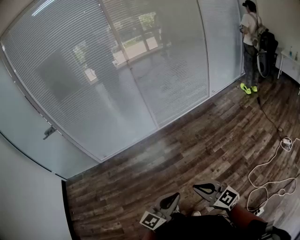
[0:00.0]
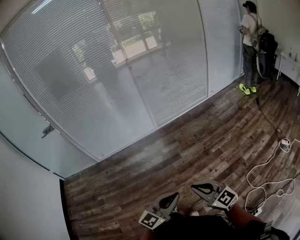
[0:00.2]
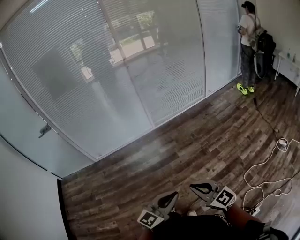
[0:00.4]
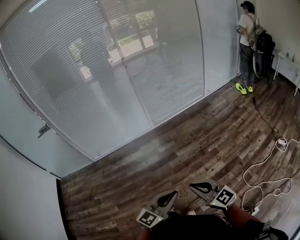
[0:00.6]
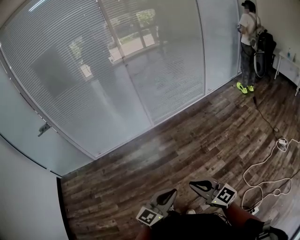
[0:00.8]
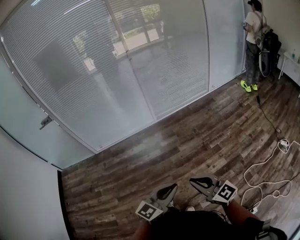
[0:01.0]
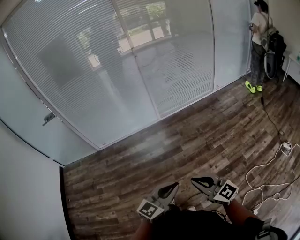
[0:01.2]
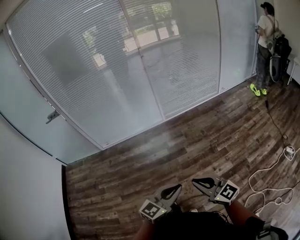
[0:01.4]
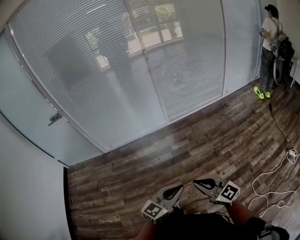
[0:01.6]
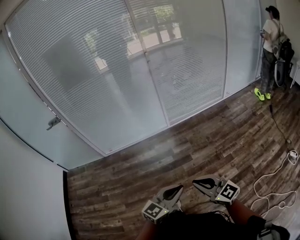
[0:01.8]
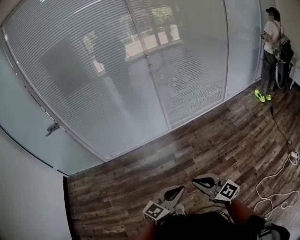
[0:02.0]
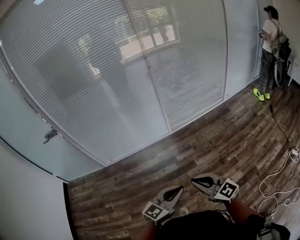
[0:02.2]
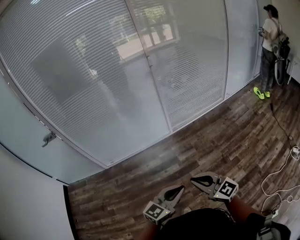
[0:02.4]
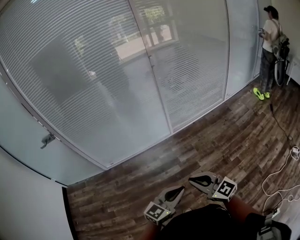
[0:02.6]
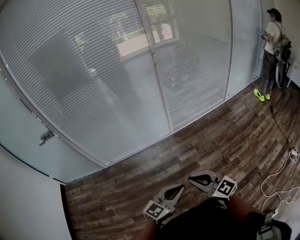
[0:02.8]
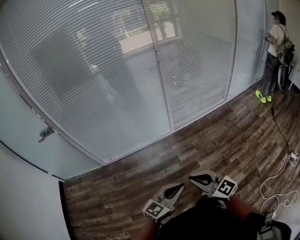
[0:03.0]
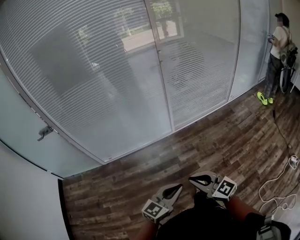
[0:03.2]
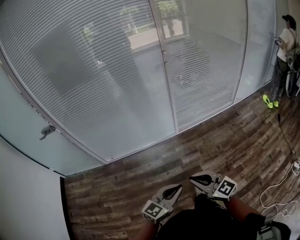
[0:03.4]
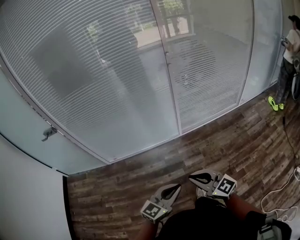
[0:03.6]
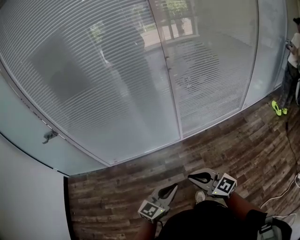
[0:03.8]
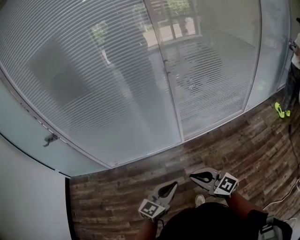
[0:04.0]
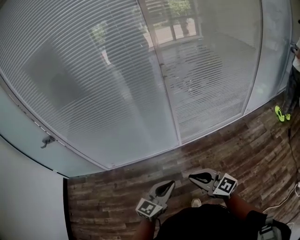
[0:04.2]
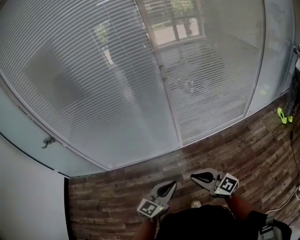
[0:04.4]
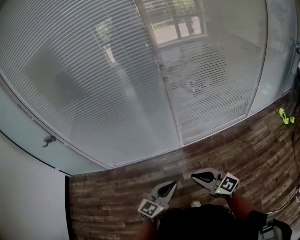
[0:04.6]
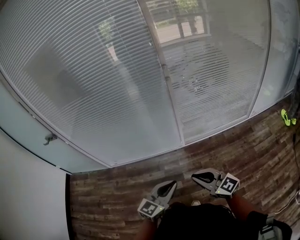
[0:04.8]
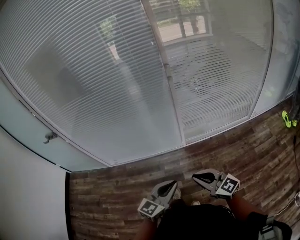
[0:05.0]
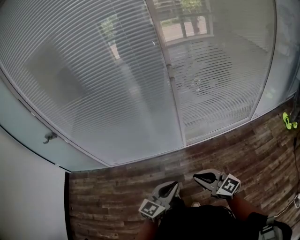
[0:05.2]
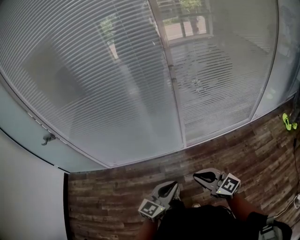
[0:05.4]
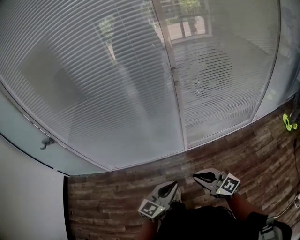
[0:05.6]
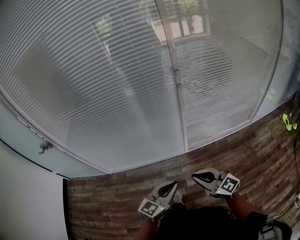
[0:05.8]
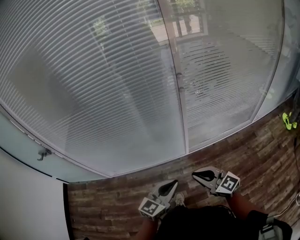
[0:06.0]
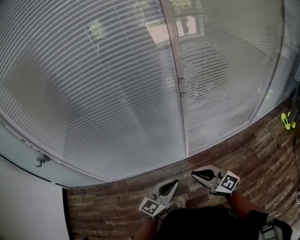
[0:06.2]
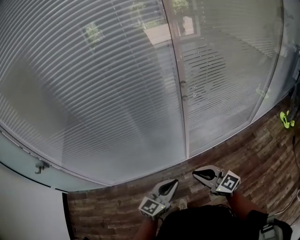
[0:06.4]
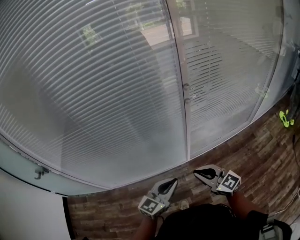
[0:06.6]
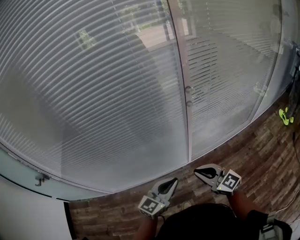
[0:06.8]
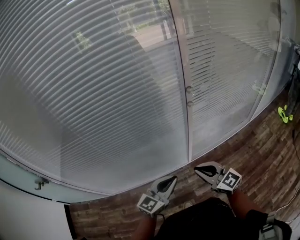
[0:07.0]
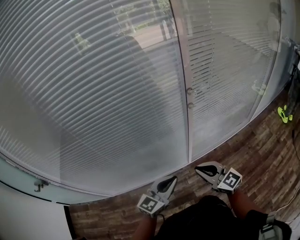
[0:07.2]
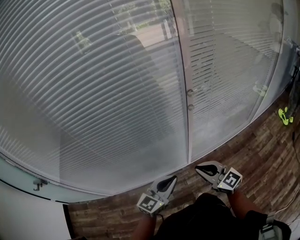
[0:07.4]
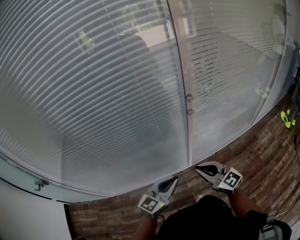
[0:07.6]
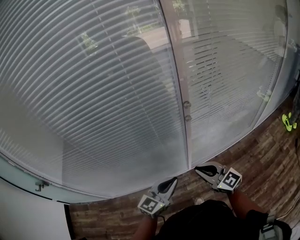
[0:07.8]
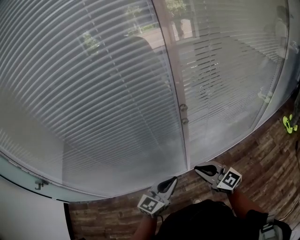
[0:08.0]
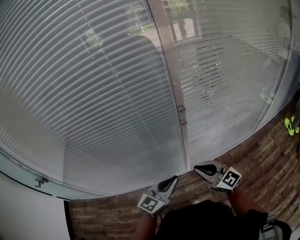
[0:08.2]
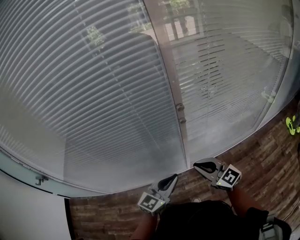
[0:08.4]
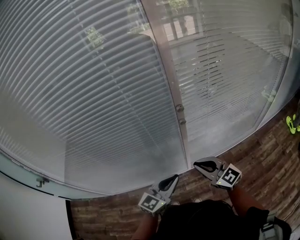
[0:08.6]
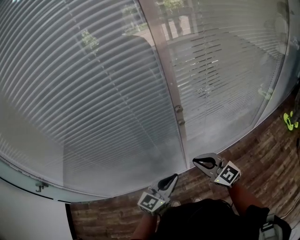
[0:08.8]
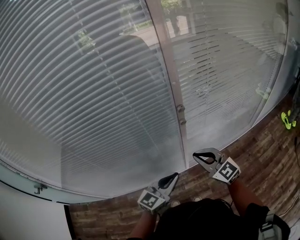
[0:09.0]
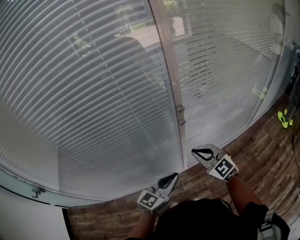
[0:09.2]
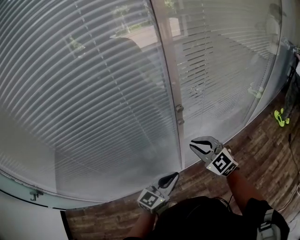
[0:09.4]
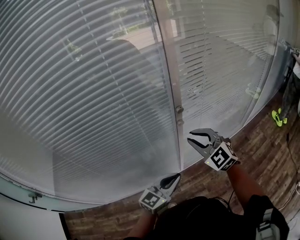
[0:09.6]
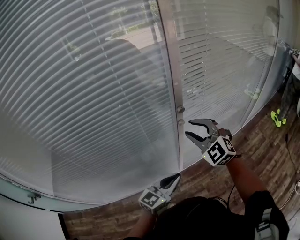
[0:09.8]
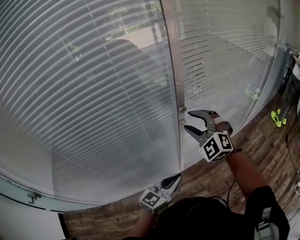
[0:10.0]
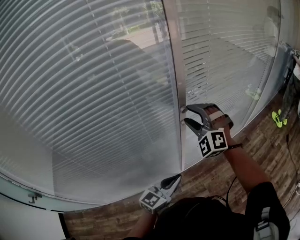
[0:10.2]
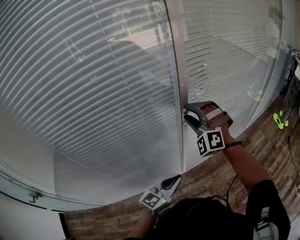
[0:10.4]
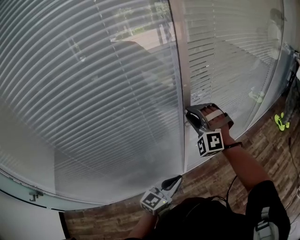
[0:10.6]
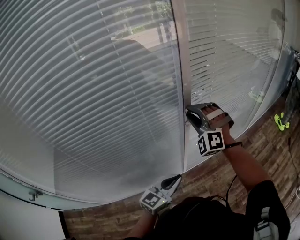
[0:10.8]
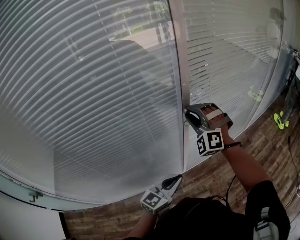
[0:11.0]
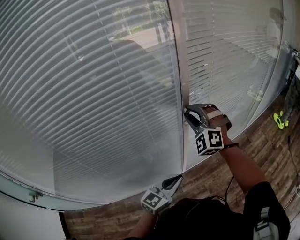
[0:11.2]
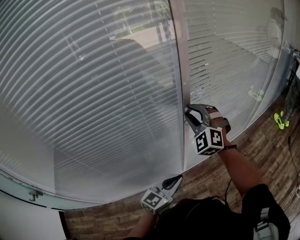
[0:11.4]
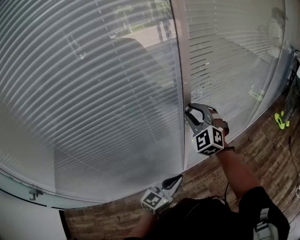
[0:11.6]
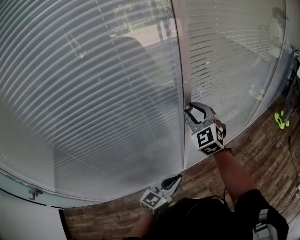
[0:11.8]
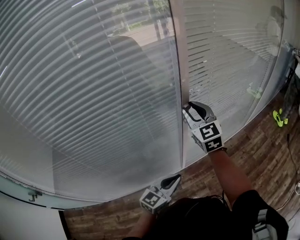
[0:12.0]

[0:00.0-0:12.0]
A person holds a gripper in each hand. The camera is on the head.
0:00.0 to 0:01.6: The right gripper shifts approximately 10 cm forward and to the left; the left gripper heads forward, covering roughly 5 cm.
0:01.6 to 0:03.0: The two grippers go roughly 25 cm forward and to the left.
0:03.0 to 0:04.4: The two grippers go roughly 25 cm forward and to the right.
0:04.4 to 0:06.0: The grippers both shift forward by approximately 15 cm.
0:06.0 to 0:07.6: Both grippers travel together forward, about 15 cm.
0:07.6 to 0:09.0: The left gripper shifts roughly 5 cm to the right, while the right gripper heads forward and to the right, covering some 10 cm.
0:09.0 to 0:10.4: The right gripper goes roughly 20 cm forward and upward, rotates around the line of its fingers by roughly 60 degrees, counterclockwise from behind, and opens.
0:10.4 to 0:12.0: The right gripper rolls clockwise, seen from behind, by roughly 60 degrees.

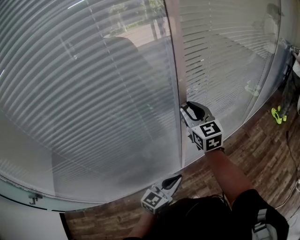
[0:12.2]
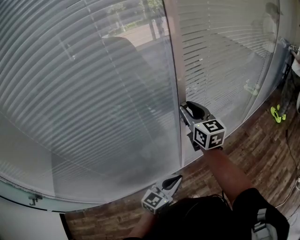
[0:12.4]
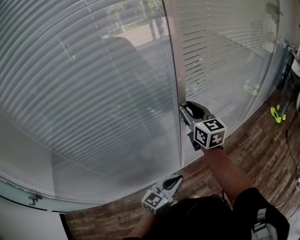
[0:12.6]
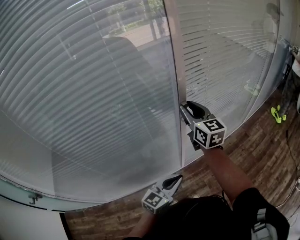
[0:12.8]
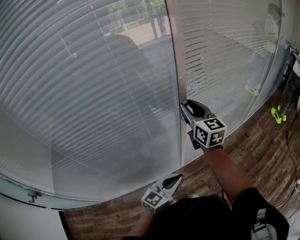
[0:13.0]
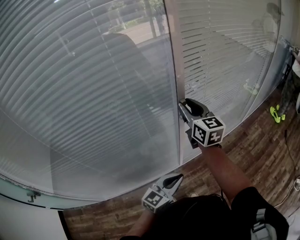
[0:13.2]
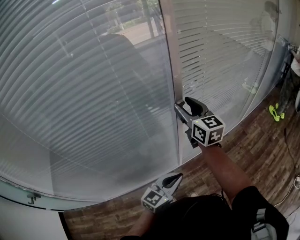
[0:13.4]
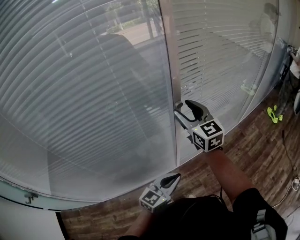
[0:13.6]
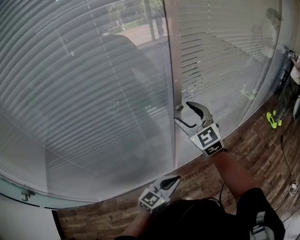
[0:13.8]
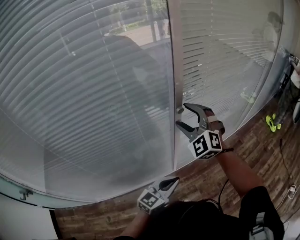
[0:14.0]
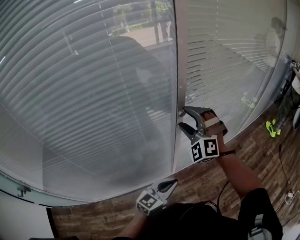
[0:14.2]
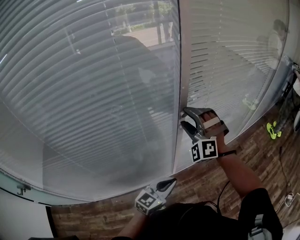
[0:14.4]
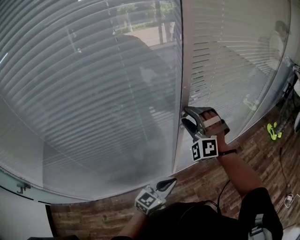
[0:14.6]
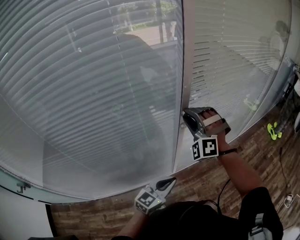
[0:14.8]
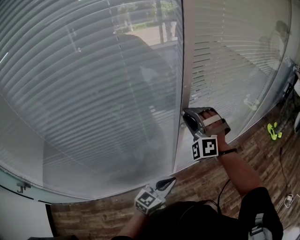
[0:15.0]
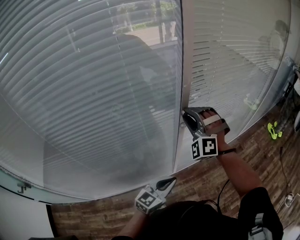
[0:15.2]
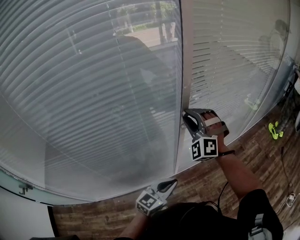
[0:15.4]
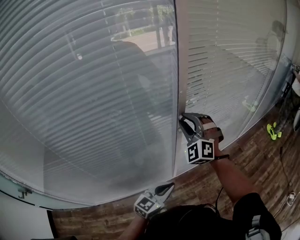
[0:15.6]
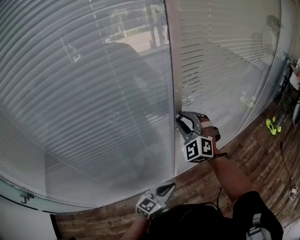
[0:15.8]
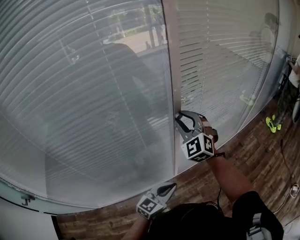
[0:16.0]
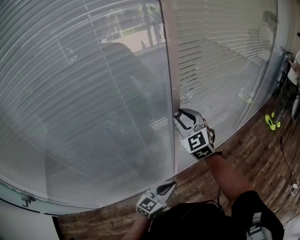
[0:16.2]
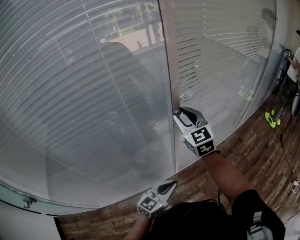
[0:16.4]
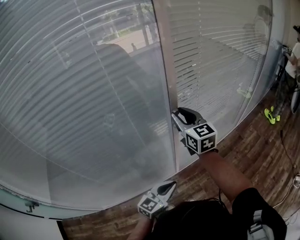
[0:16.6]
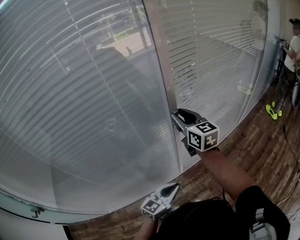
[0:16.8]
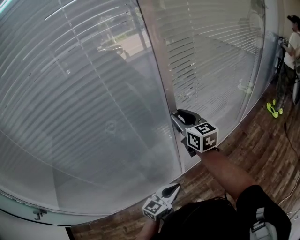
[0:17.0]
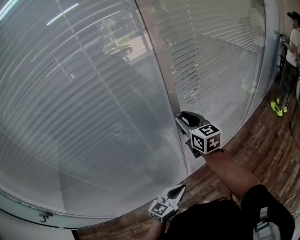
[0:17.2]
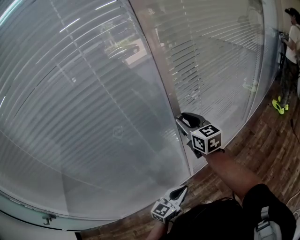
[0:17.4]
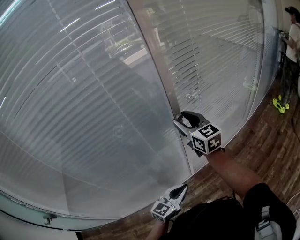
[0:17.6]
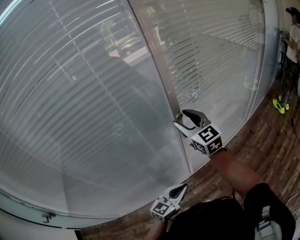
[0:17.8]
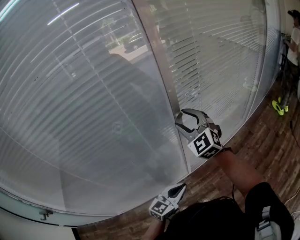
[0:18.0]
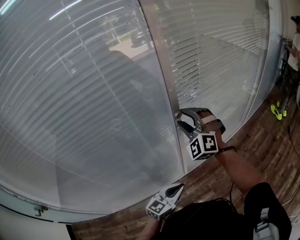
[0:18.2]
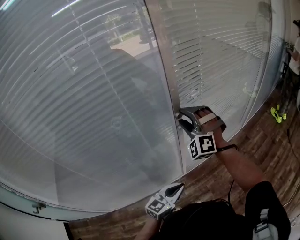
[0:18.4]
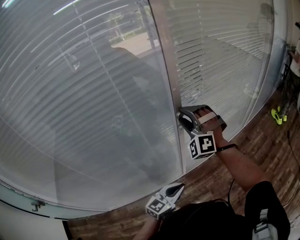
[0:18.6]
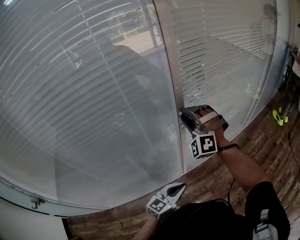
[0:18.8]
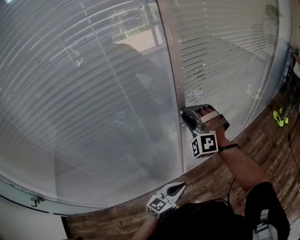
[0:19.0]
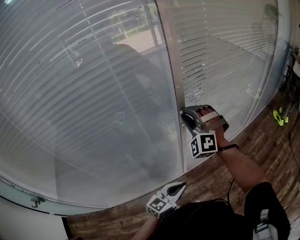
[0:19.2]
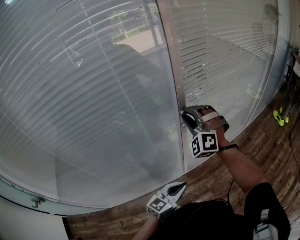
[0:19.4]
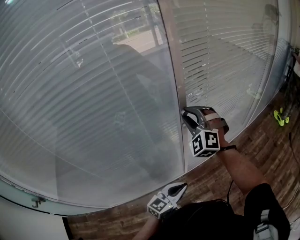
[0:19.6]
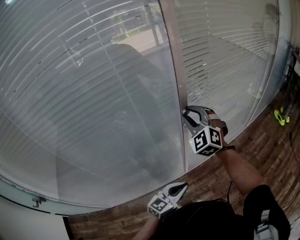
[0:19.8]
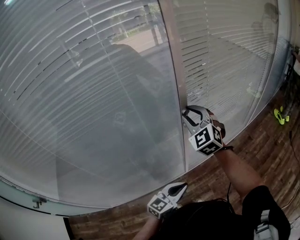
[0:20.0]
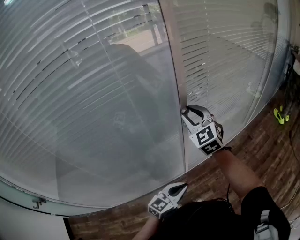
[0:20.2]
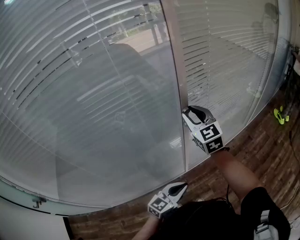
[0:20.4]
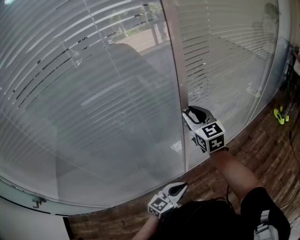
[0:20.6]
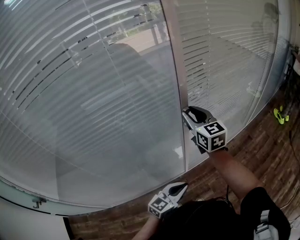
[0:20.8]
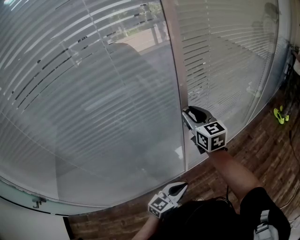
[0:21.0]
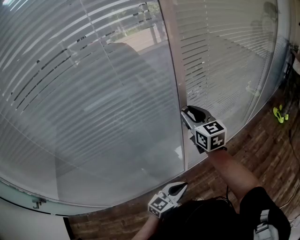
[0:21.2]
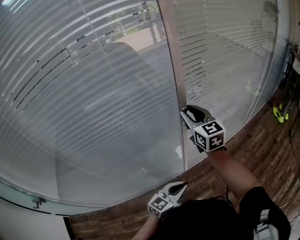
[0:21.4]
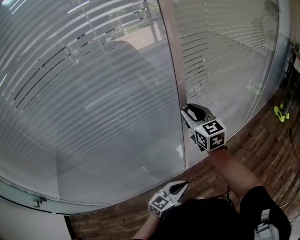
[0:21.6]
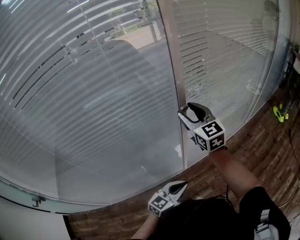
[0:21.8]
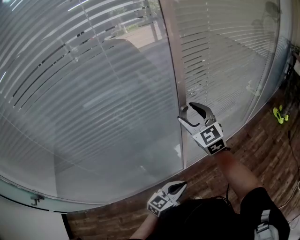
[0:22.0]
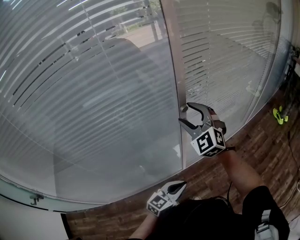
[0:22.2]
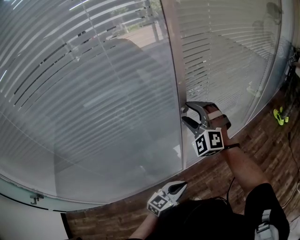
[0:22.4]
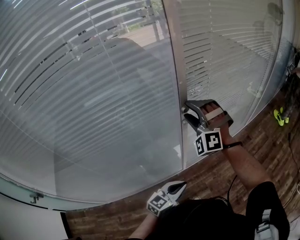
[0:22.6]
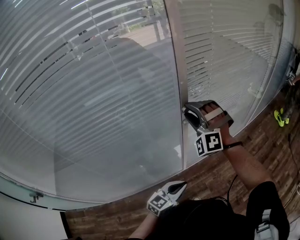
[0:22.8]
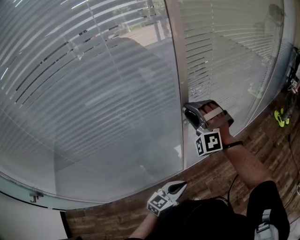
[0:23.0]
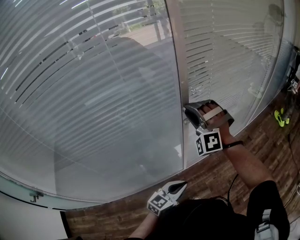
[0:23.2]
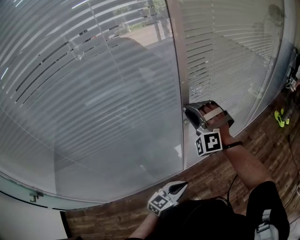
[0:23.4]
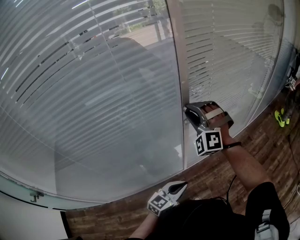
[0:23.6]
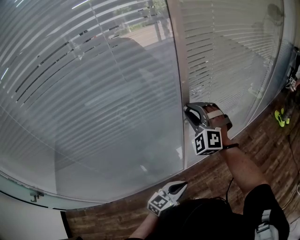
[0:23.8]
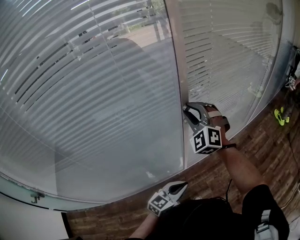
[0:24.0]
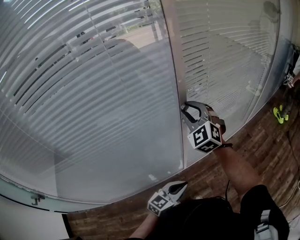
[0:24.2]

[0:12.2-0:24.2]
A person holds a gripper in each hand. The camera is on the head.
0:12.2 to 0:13.8: The right gripper swivels about 20 degrees, and opens up.
0:13.8 to 0:15.2: The right gripper rotates around the line of its fingers by some 50 degrees, counterclockwise from behind, and closes its fingers.
0:15.2 to 0:16.6: The right gripper rolls clockwise, seen from behind, by some 80 degrees.
0:16.6 to 0:18.2: The right gripper twists approximately 70 degrees counterclockwise, seen from behind.
0:18.2 to 0:19.8: The grippers make only small movements.
0:19.8 to 0:21.2: The right gripper twists roughly 50 degrees clockwise, seen from behind.
0:21.2 to 0:22.6: The right gripper rolls counterclockwise, seen from behind, by some 90 degrees, and opens its fingers.
0:22.6 to 0:24.2: The right gripper changes its angle by roughly 40 degrees, and closes up.
